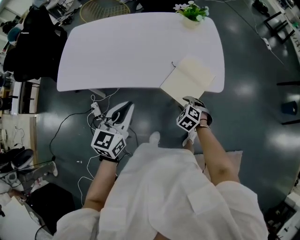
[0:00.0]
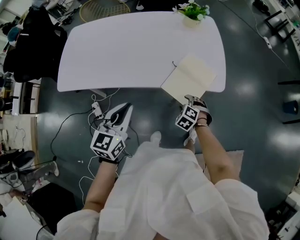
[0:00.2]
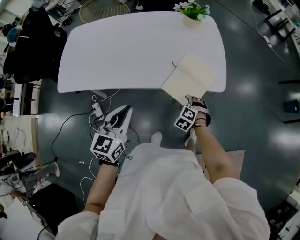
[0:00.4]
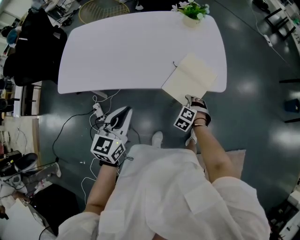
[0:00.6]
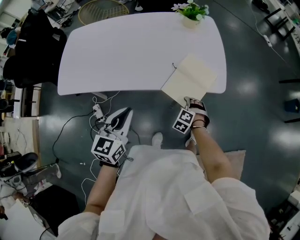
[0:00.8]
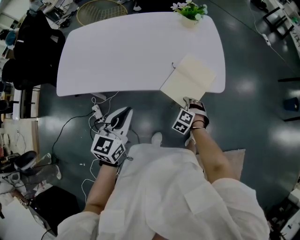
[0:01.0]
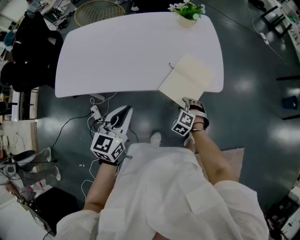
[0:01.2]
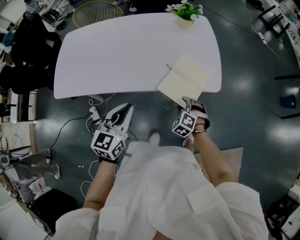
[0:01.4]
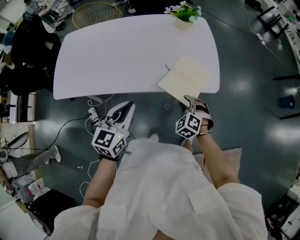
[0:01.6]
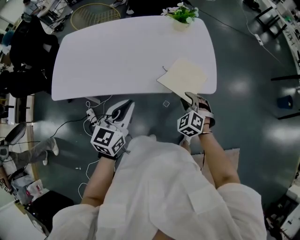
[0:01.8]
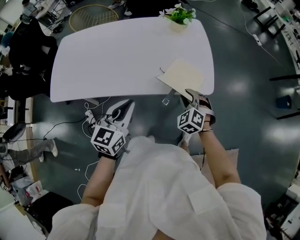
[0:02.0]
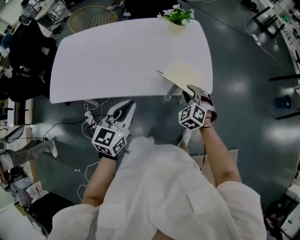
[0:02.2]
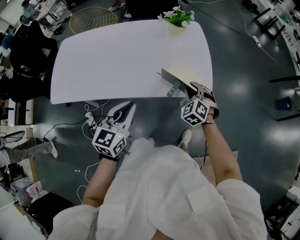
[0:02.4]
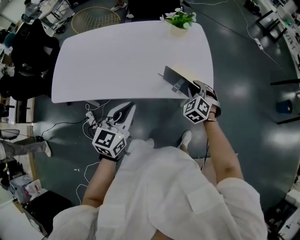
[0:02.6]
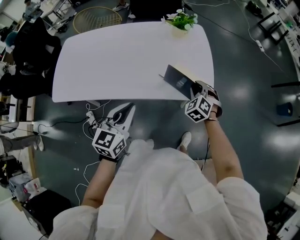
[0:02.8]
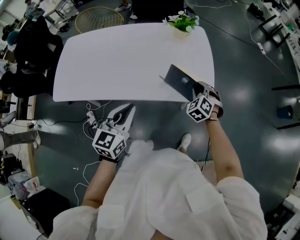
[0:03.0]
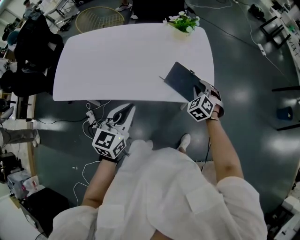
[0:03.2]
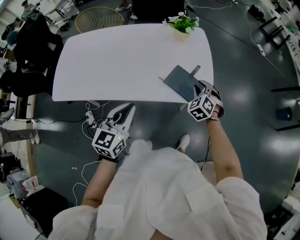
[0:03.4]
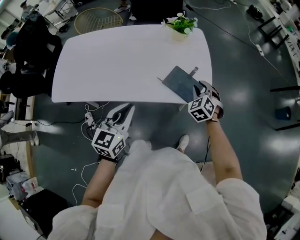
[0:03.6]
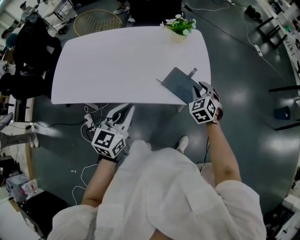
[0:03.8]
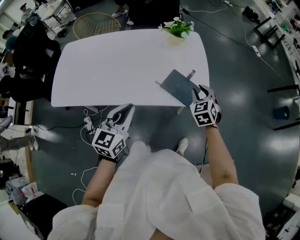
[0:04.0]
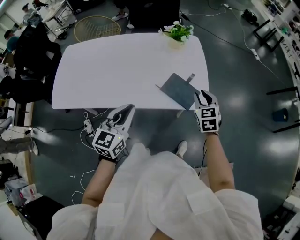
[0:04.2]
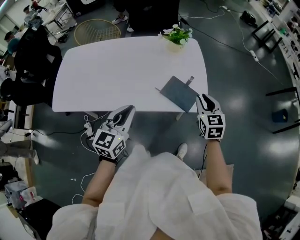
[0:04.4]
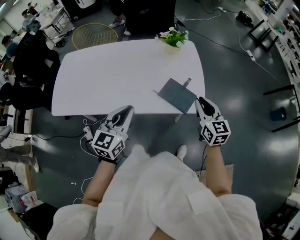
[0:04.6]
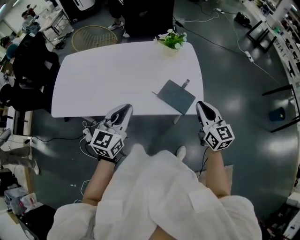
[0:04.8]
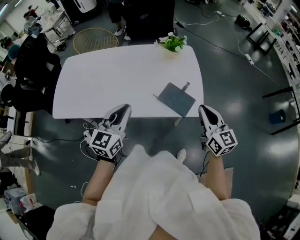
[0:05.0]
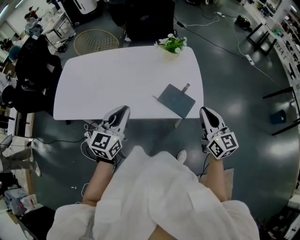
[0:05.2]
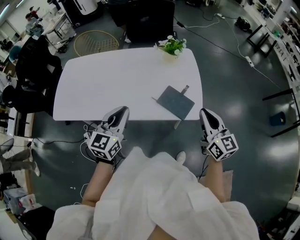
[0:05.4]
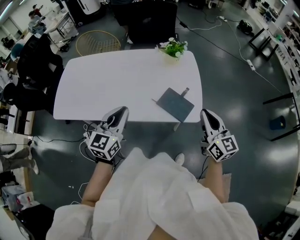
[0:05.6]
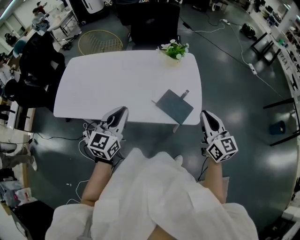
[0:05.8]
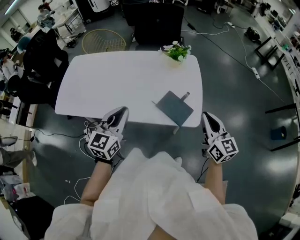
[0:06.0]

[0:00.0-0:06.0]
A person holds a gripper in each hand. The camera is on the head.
0.0 to 1.6 s: The right gripper is displaced upward by some 5 cm.
1.6 to 3.0 s: The right gripper goes roughly 15 cm forward and to the right, while the left gripper shifts by about 5 cm.
3.0 to 4.4 s: The right gripper moves upward, about 10 cm, and twists some 40 degrees clockwise, seen from behind.
4.4 to 6.0 s: The right gripper is displaced upward by roughly 10 cm, turns by approximately 30 degrees, and closes its fingers; the left gripper changes place by roughly 5 cm.

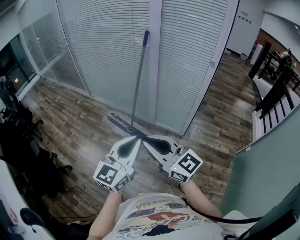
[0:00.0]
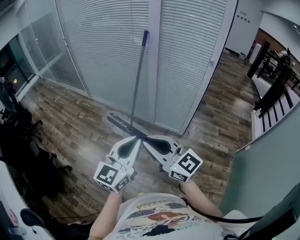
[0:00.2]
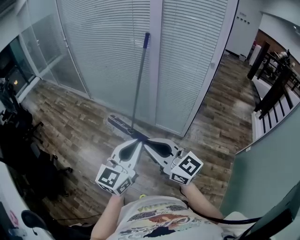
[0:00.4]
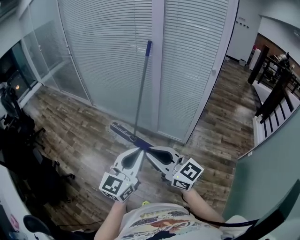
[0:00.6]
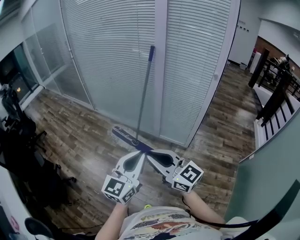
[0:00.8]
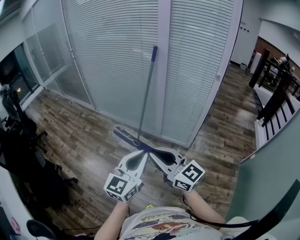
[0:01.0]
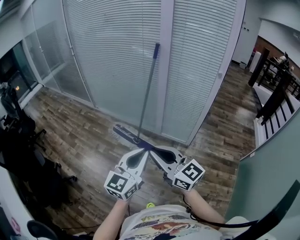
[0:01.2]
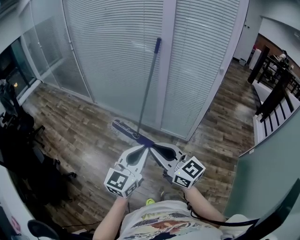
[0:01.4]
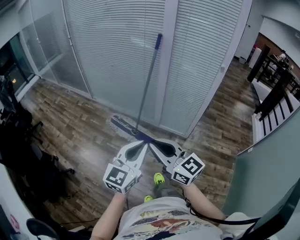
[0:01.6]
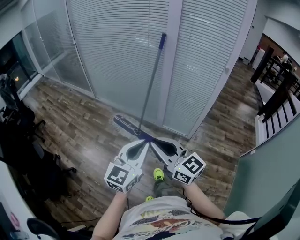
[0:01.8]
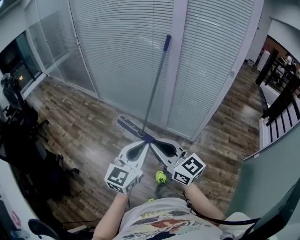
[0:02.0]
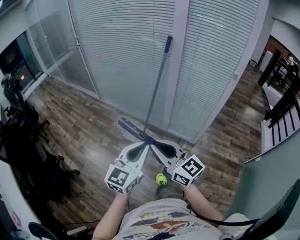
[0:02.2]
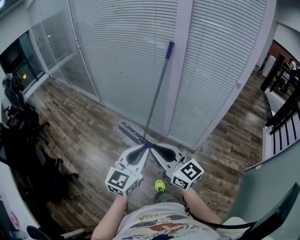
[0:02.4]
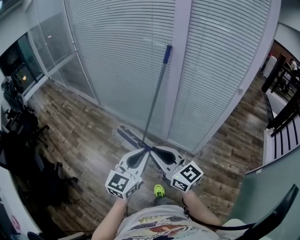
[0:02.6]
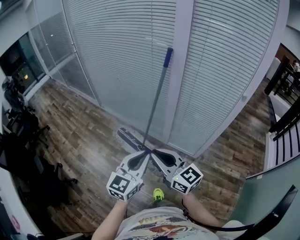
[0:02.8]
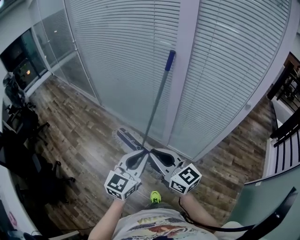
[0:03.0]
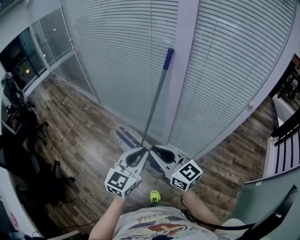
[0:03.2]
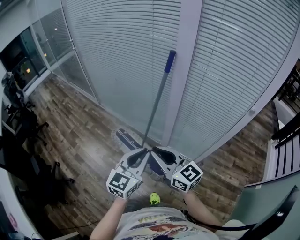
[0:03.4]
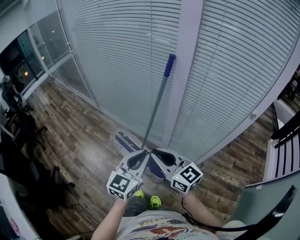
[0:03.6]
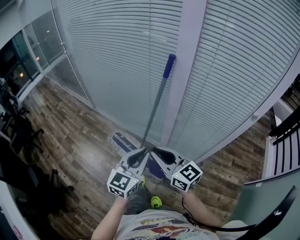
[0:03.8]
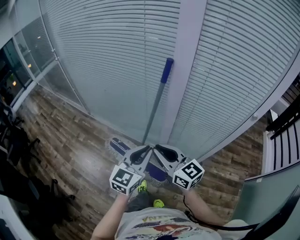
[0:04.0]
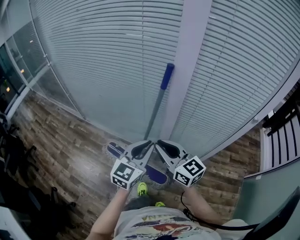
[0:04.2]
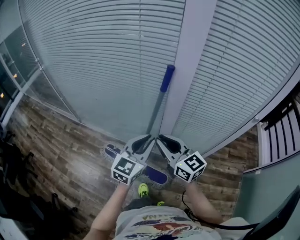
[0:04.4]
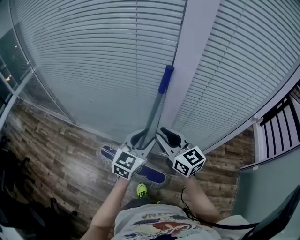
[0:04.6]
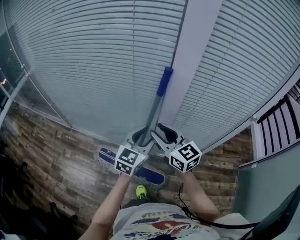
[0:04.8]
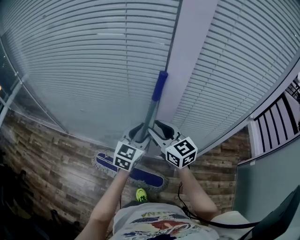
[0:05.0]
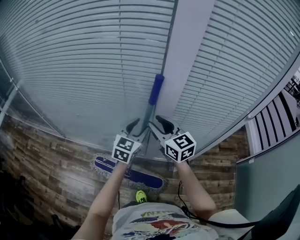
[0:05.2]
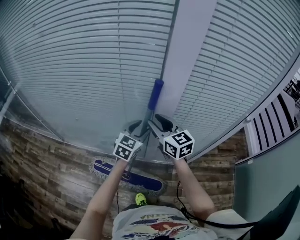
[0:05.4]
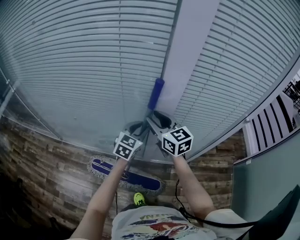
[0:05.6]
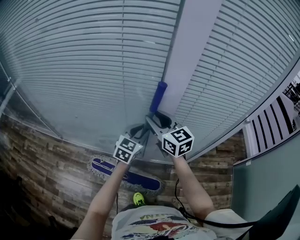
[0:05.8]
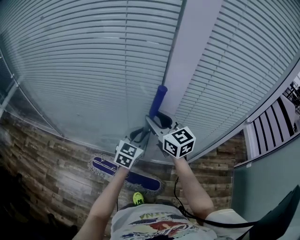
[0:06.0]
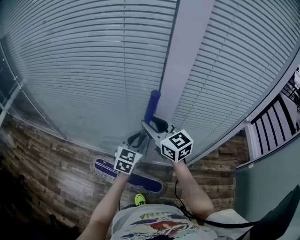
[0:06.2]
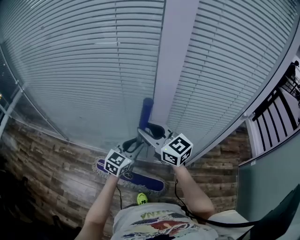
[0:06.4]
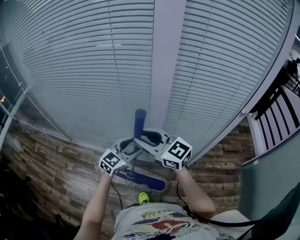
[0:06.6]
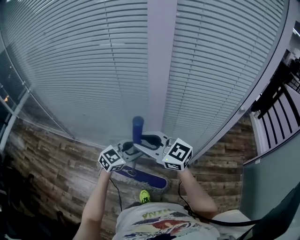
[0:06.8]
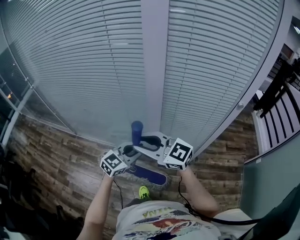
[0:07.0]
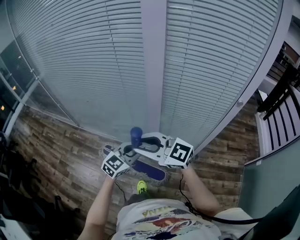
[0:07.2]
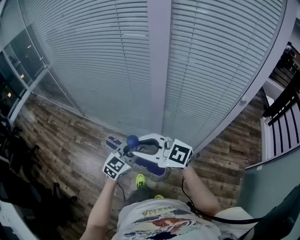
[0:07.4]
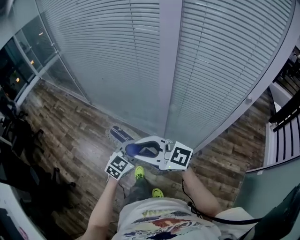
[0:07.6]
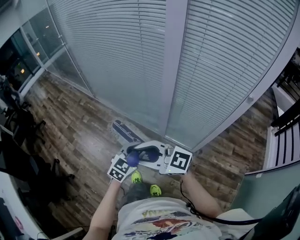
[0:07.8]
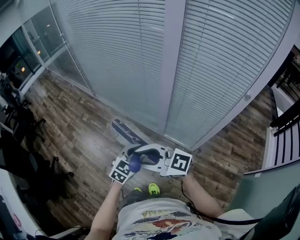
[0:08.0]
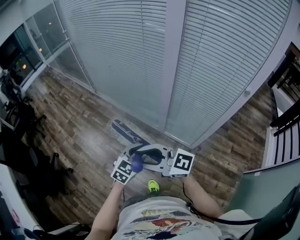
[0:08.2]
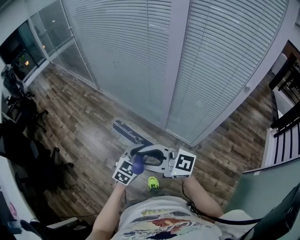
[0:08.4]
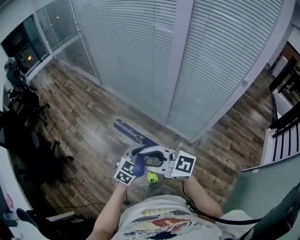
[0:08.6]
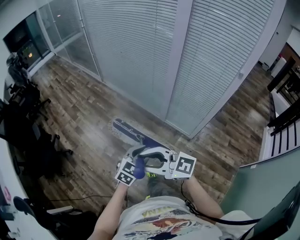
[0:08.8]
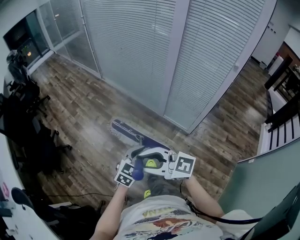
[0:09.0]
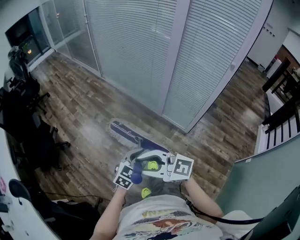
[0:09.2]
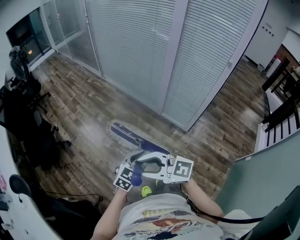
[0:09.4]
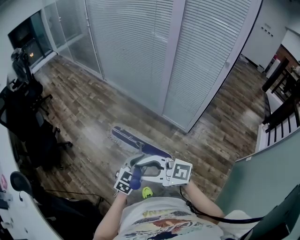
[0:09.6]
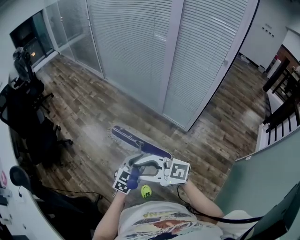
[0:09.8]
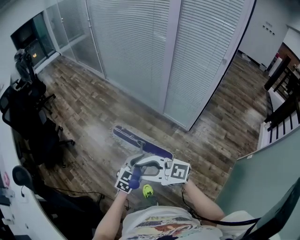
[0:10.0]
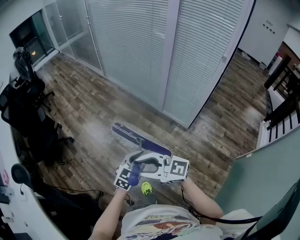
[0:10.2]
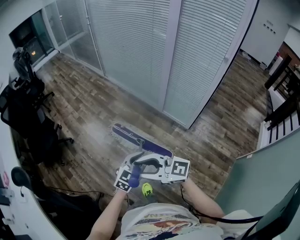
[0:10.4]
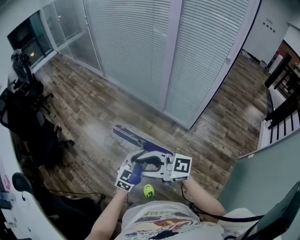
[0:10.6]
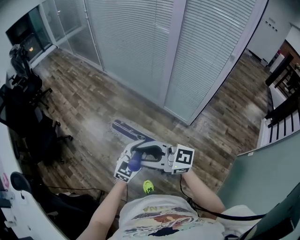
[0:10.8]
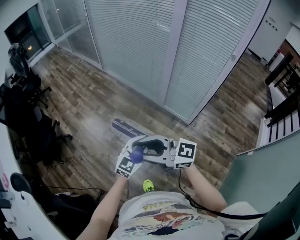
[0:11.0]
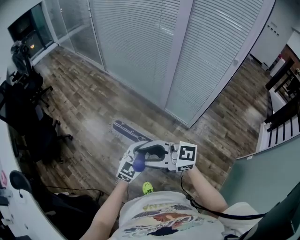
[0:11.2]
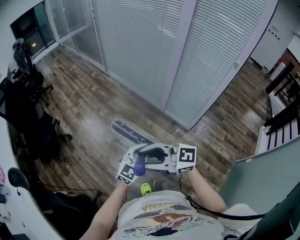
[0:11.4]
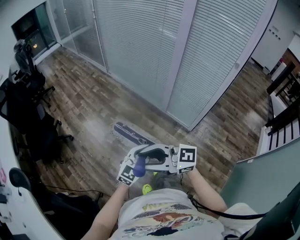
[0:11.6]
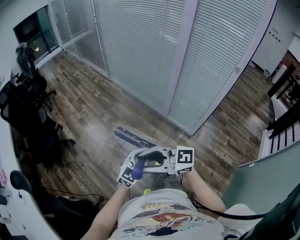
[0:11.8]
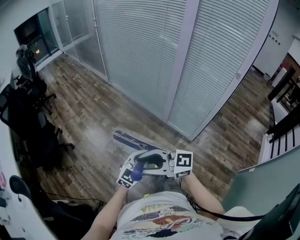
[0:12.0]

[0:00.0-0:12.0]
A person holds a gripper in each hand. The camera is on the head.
0.0 to 1.6 s: The grippers both shift to the left by about 10 cm.
1.6 to 3.0 s: The grippers both shift forward by some 30 cm.
3.0 to 4.4 s: Both grippers travel together forward, some 30 cm.
4.4 to 6.0 s: The right gripper heads forward, covering some 20 cm, and opens, while the left gripper moves forward and downward, approximately 20 cm, and opens and closes again.
6.0 to 7.6 s: The right gripper moves some 40 cm, and swivels some 60 degrees; the left gripper ends up roughly 35 cm from where it was, and opens, then closes again.
7.6 to 9.0 s: The two grippers travel together, backward and to the left, approximately 40 cm.
9.0 to 10.4 s: The left gripper shifts by some 15 cm, while the right gripper ends up about 15 cm from where it was.
10.4 to 12.0 s: The left gripper shifts by about 10 cm. Meanwhile the right gripper ends up some 10 cm from where it was.

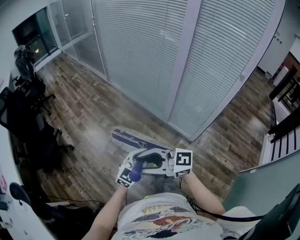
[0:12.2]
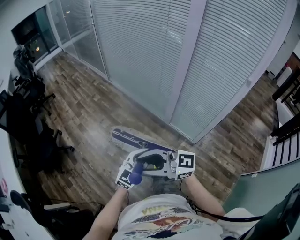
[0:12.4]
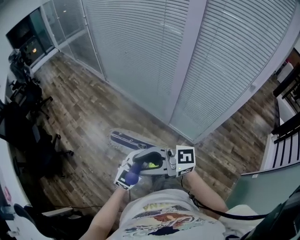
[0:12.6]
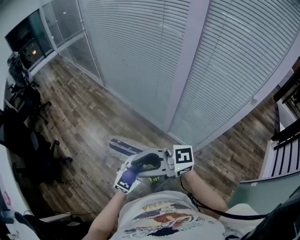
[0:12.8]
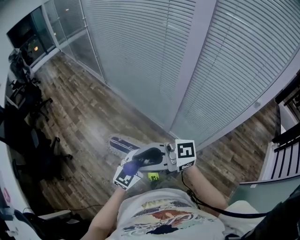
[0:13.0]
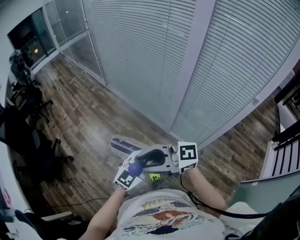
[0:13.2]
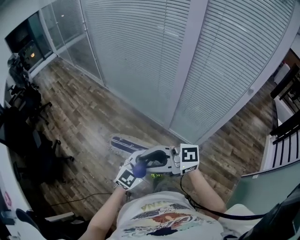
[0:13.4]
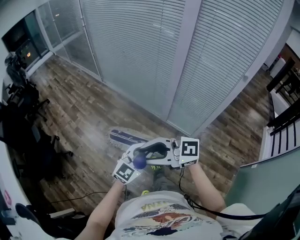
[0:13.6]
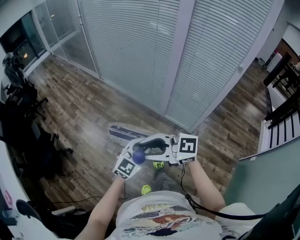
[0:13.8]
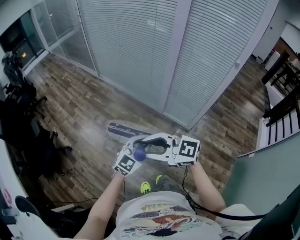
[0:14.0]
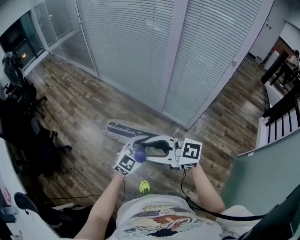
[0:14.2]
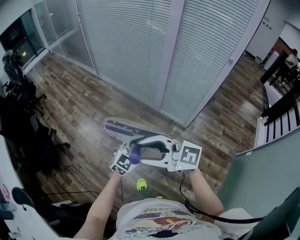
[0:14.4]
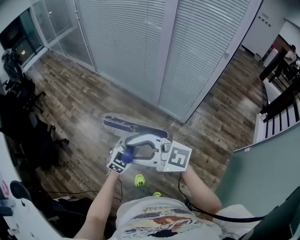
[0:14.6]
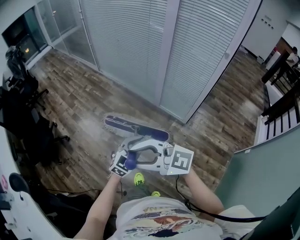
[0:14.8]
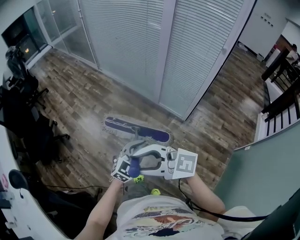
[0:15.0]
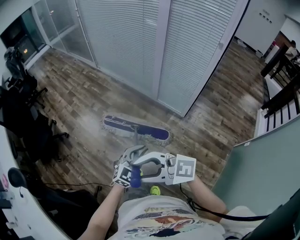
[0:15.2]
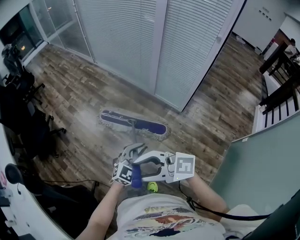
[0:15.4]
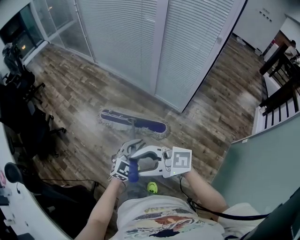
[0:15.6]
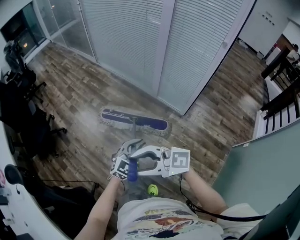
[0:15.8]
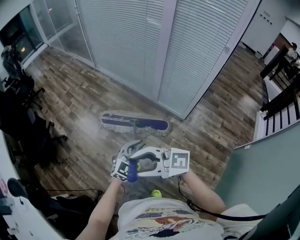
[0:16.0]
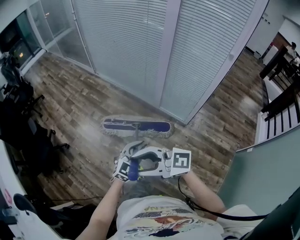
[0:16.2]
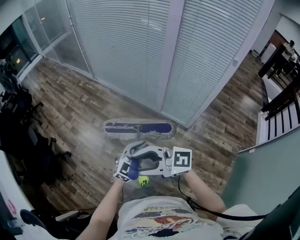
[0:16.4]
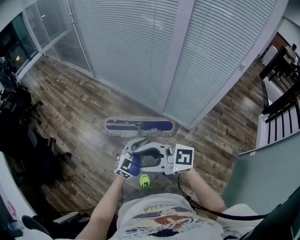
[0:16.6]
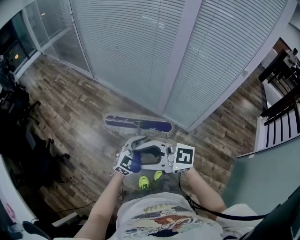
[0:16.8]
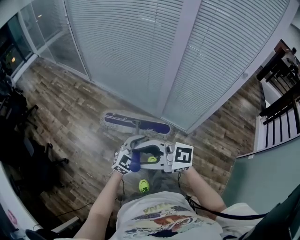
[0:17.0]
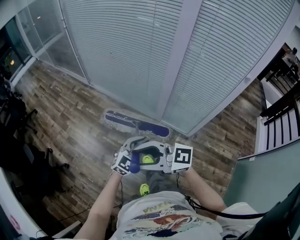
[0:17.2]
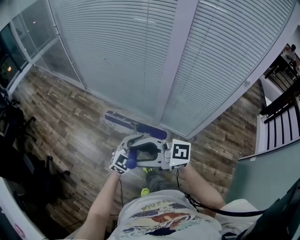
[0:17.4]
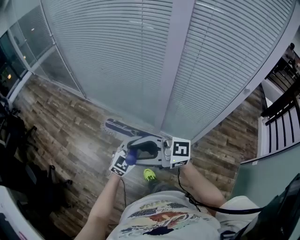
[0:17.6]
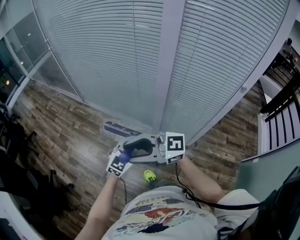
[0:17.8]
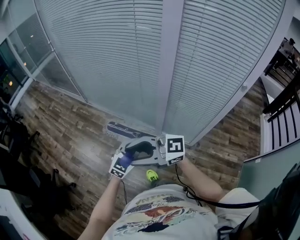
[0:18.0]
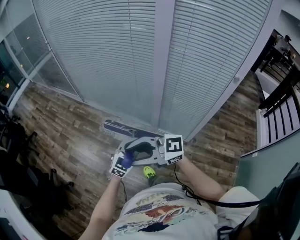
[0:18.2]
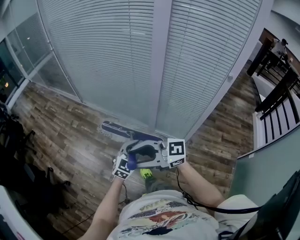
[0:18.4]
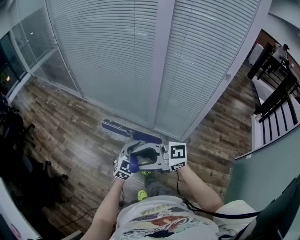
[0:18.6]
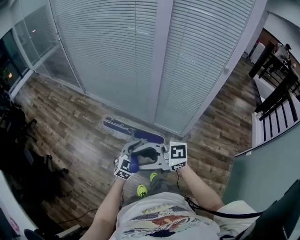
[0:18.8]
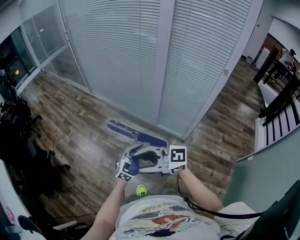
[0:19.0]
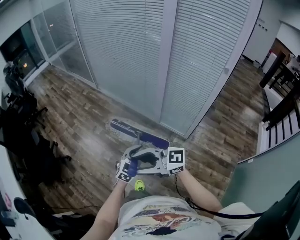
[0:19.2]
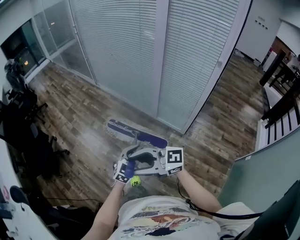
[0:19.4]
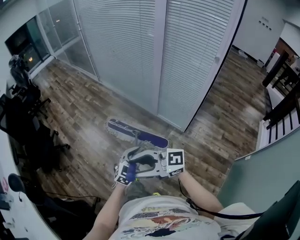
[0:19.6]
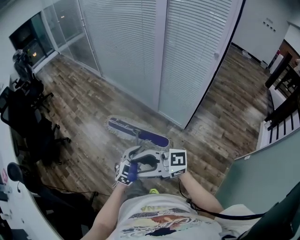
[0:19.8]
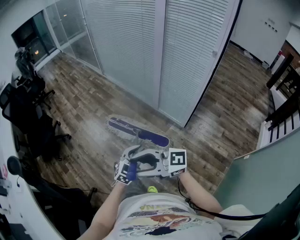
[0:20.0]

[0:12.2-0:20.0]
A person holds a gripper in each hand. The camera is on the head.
13.8 to 15.4 s: The left gripper ends up some 25 cm from where it was, while the right gripper changes place by approximately 30 cm.
15.4 to 16.8 s: The right gripper shifts by approximately 40 cm, while the left gripper shifts by about 35 cm.
18.4 to 20.0 s: The two grippers travel together, about 50 cm.
